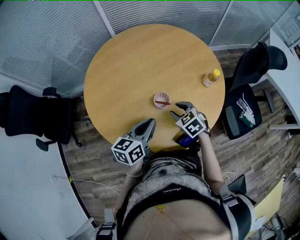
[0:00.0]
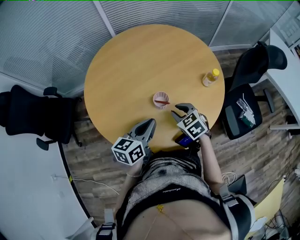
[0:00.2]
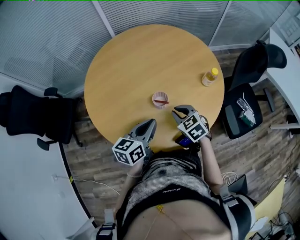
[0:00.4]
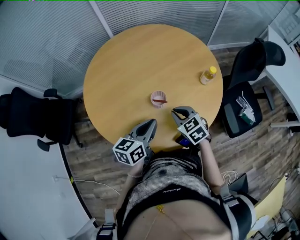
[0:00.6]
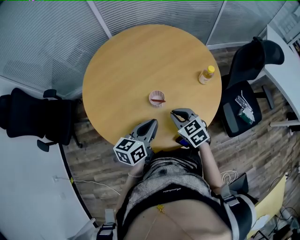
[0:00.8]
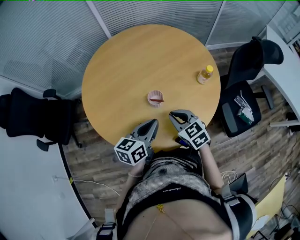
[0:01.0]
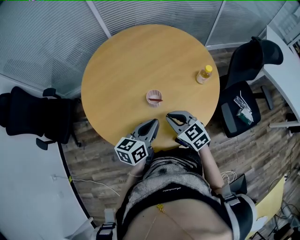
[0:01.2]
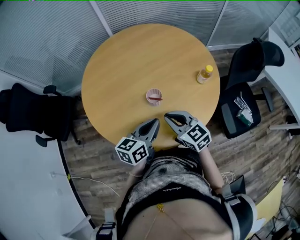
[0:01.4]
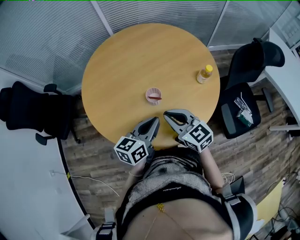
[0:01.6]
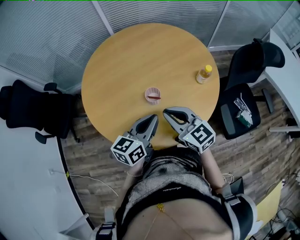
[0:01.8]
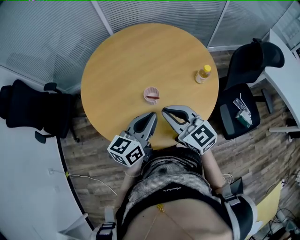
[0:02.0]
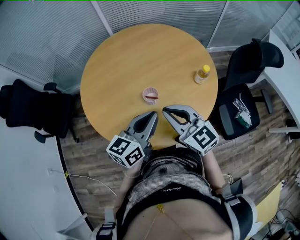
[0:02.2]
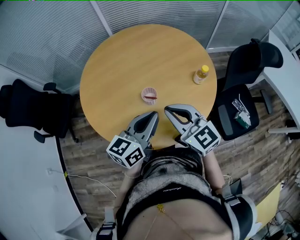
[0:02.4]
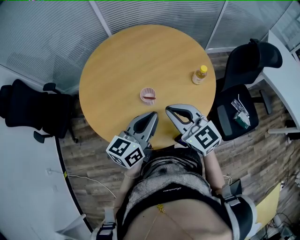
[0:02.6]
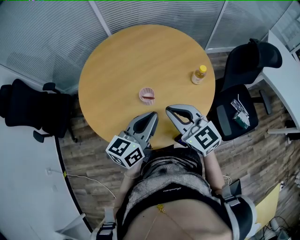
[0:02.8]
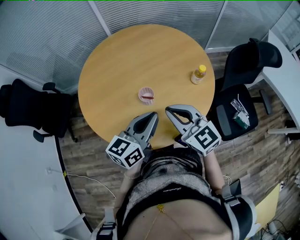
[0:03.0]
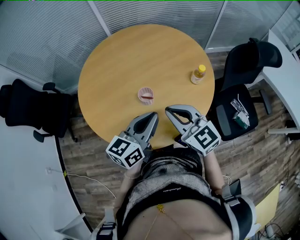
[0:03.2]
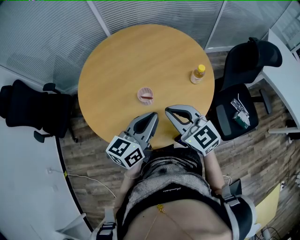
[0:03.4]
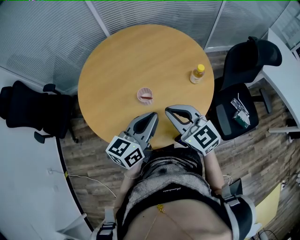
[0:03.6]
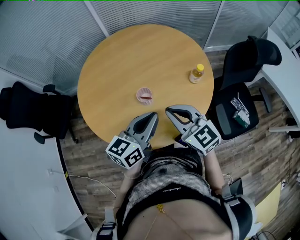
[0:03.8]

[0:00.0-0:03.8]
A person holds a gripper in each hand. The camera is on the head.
0.0 to 1.2 s: The left gripper heads to the right, covering roughly 5 cm. Meanwhile the right gripper travels upward and backward by approximately 10 cm, turns by roughly 20 degrees, and closes.
1.2 to 2.6 s: The grippers both shift upward by some 10 cm. The right gripper rotates some 20 degrees.
2.6 to 3.8 s: The grippers stay close to where they were, moving slightly.

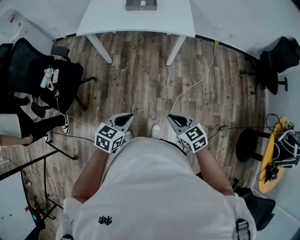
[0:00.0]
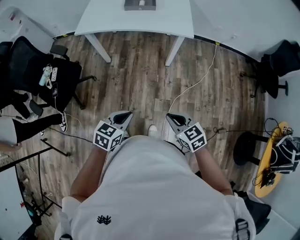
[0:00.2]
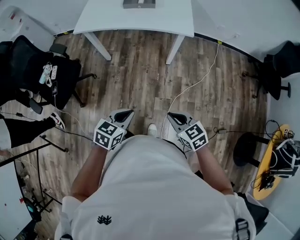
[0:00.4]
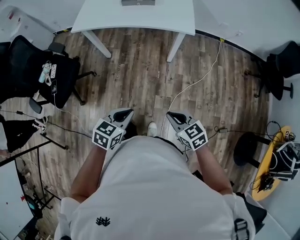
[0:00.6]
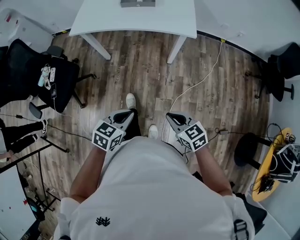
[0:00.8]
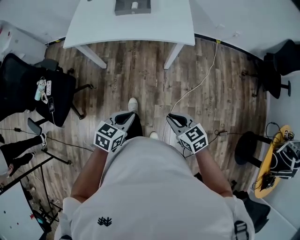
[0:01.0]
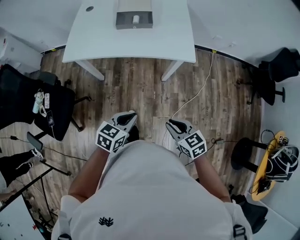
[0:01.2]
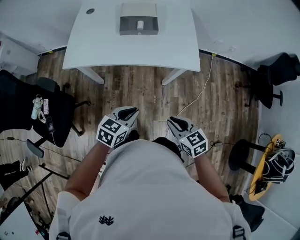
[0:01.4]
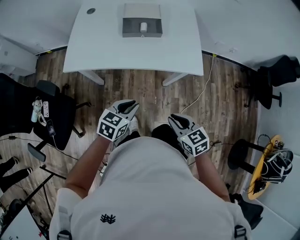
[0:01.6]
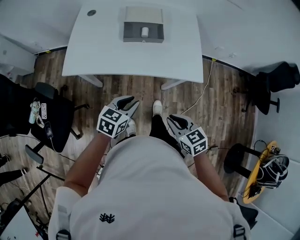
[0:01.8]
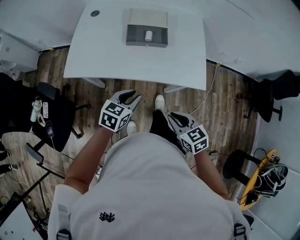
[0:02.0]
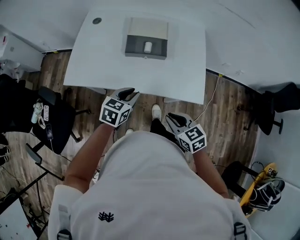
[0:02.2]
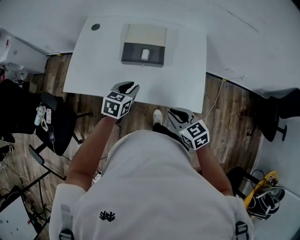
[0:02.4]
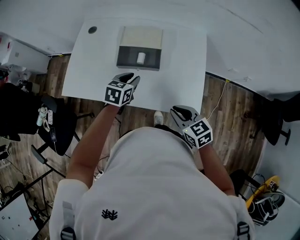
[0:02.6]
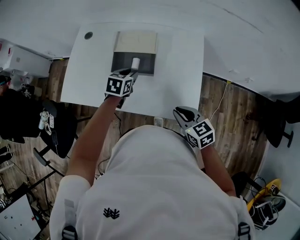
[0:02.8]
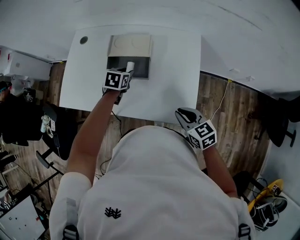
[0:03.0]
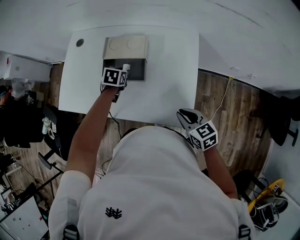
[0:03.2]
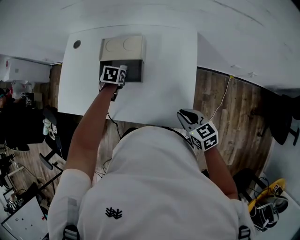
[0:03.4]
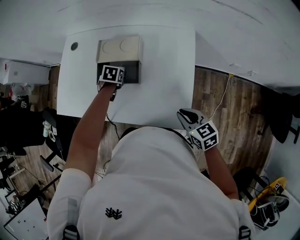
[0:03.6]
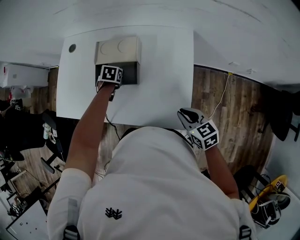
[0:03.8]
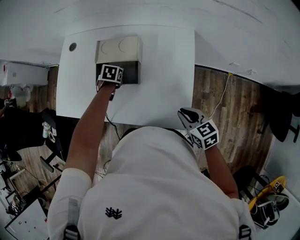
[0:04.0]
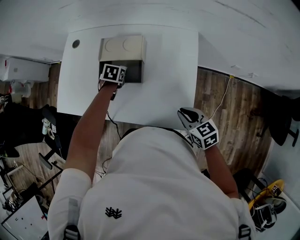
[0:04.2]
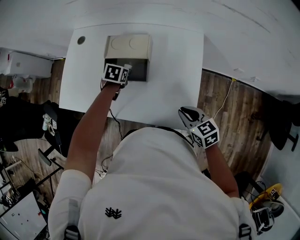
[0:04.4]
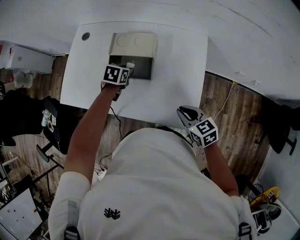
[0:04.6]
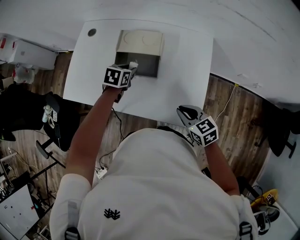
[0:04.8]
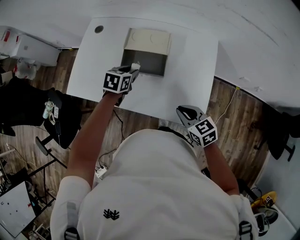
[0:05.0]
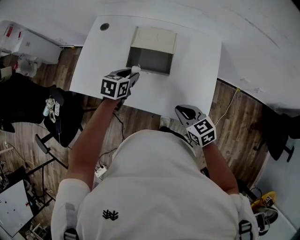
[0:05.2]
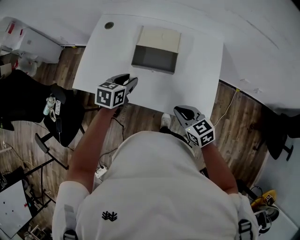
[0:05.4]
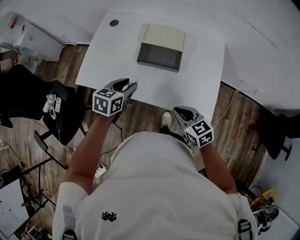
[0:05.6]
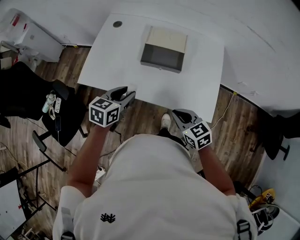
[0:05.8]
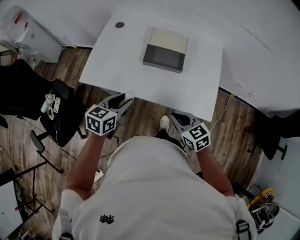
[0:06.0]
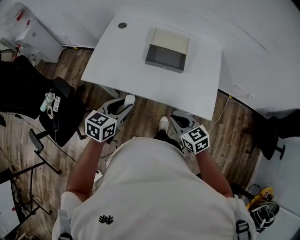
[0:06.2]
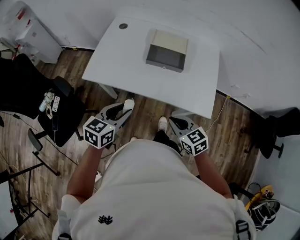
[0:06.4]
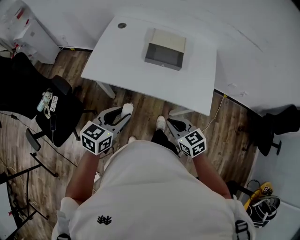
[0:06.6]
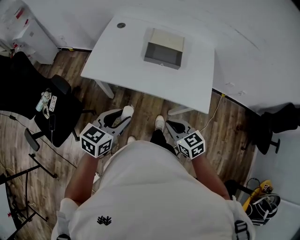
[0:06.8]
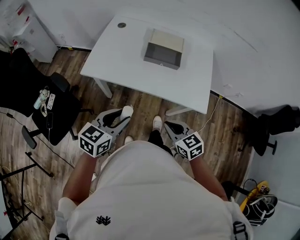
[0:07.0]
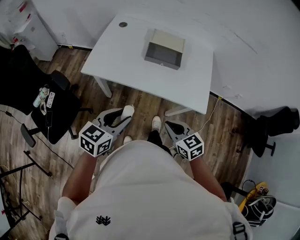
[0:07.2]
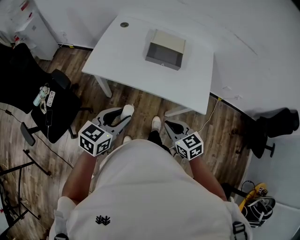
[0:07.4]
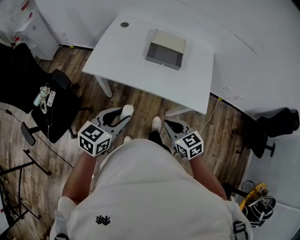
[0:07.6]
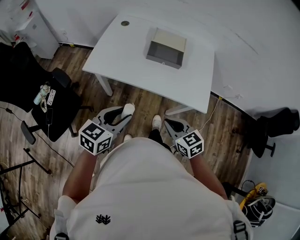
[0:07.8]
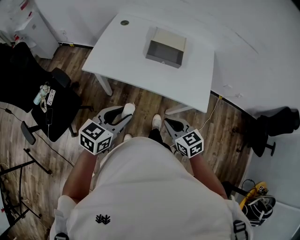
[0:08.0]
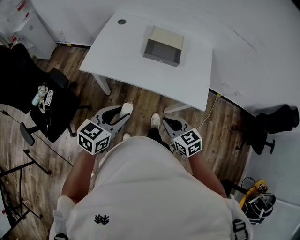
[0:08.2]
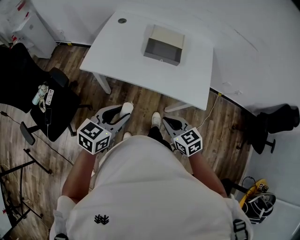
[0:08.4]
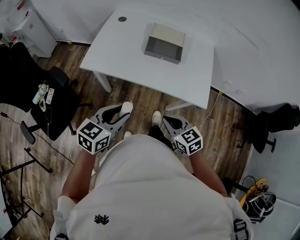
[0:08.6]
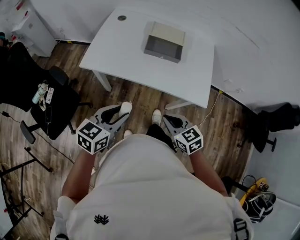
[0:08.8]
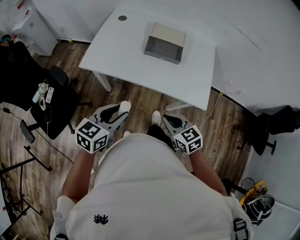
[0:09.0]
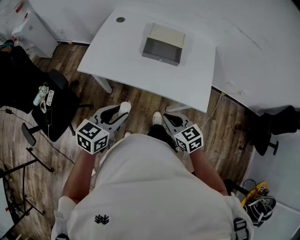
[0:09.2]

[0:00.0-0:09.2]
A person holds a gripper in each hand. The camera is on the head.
0.0 to 1.6 s: Both grippers move forward, about 30 cm.
1.6 to 3.0 s: The right gripper heads forward and to the right, covering roughly 30 cm, while the left gripper shifts about 40 cm forward, swivels roughly 30 degrees, and opens its fingers.
4.6 to 6.2 s: The right gripper shifts roughly 20 cm to the left and backward; the left gripper moves backward, to the left and upward, some 35 cm, and points its fingers roughly 30 degrees further upward.
6.2 to 7.6 s: The two grippers go some 10 cm backward.
7.6 to 9.2 s: The grippers make only small movements.

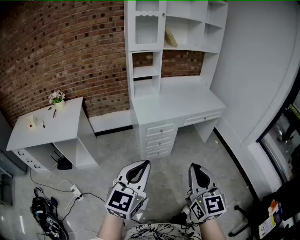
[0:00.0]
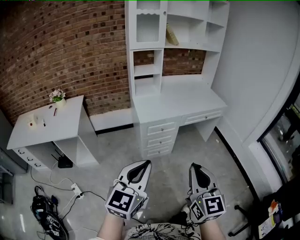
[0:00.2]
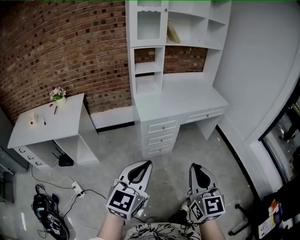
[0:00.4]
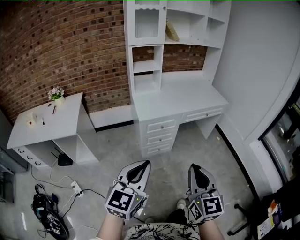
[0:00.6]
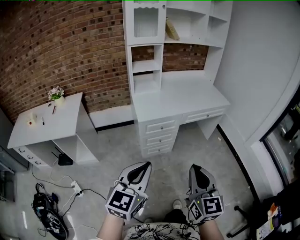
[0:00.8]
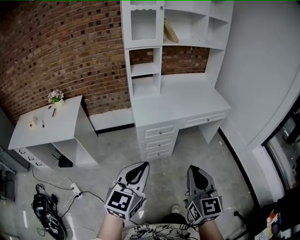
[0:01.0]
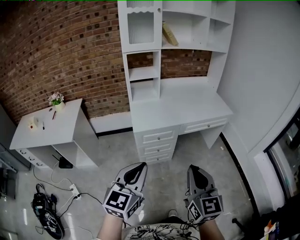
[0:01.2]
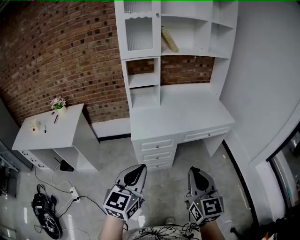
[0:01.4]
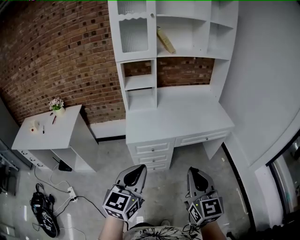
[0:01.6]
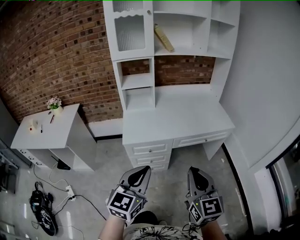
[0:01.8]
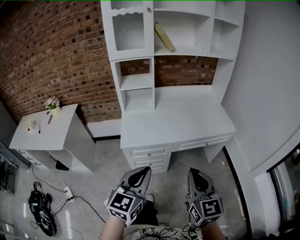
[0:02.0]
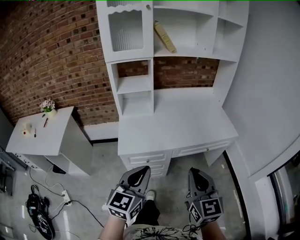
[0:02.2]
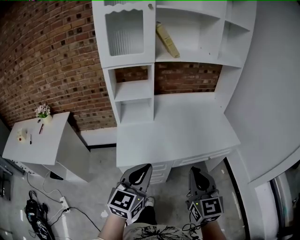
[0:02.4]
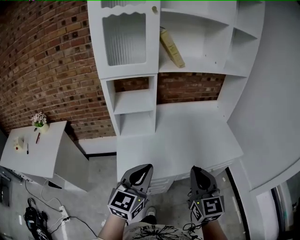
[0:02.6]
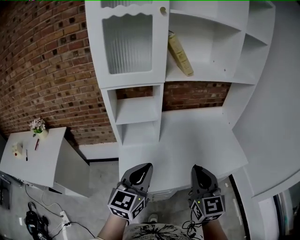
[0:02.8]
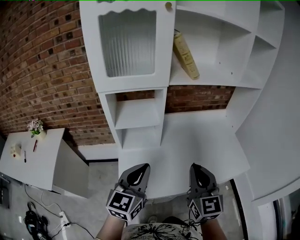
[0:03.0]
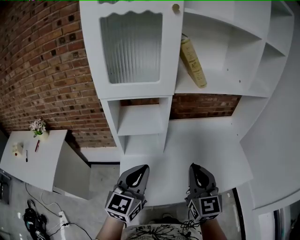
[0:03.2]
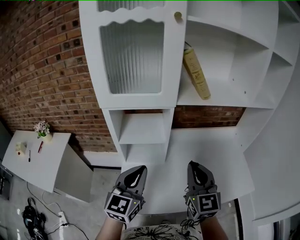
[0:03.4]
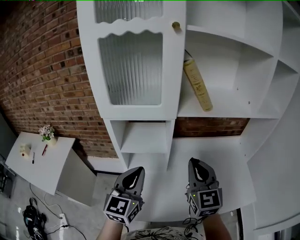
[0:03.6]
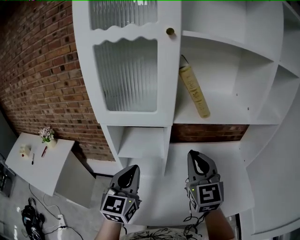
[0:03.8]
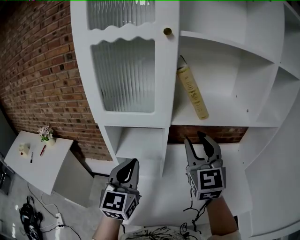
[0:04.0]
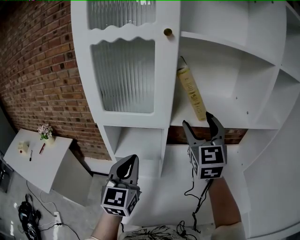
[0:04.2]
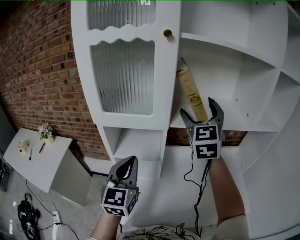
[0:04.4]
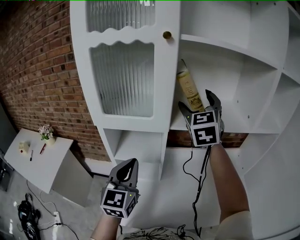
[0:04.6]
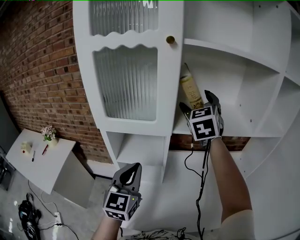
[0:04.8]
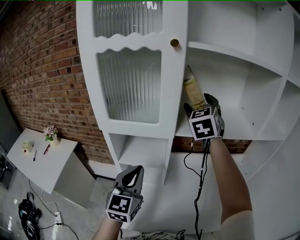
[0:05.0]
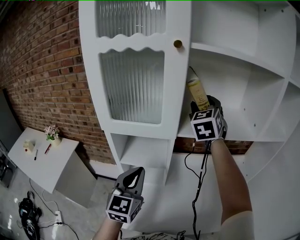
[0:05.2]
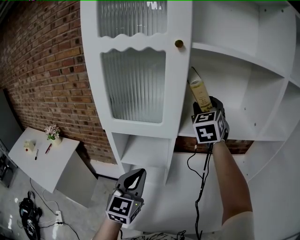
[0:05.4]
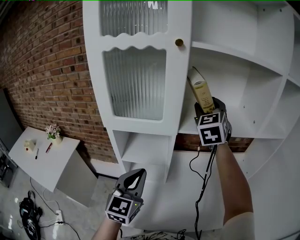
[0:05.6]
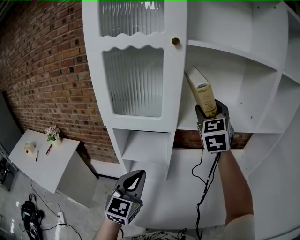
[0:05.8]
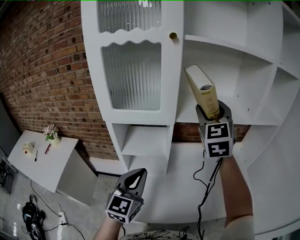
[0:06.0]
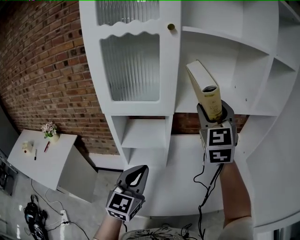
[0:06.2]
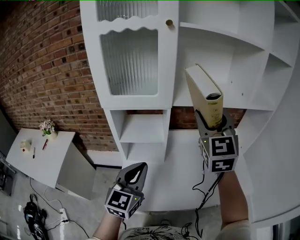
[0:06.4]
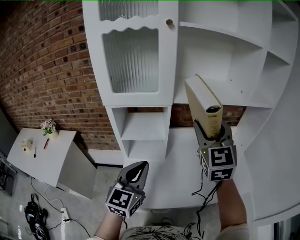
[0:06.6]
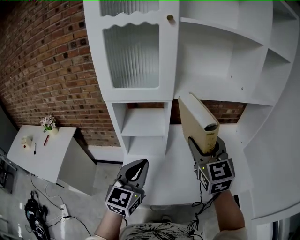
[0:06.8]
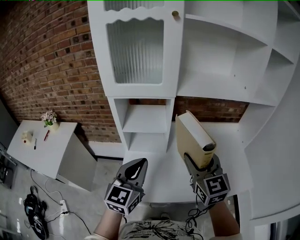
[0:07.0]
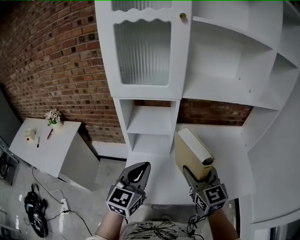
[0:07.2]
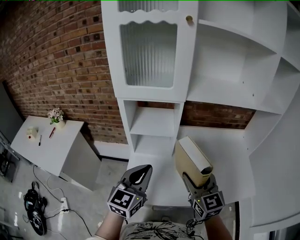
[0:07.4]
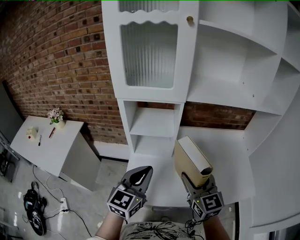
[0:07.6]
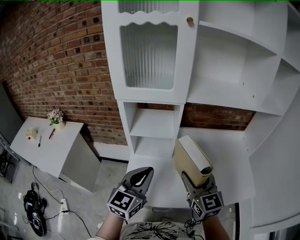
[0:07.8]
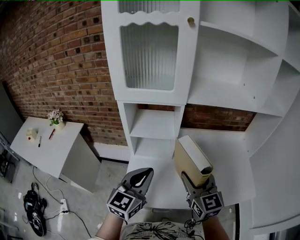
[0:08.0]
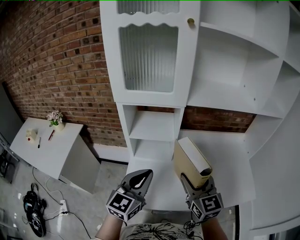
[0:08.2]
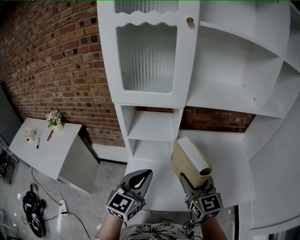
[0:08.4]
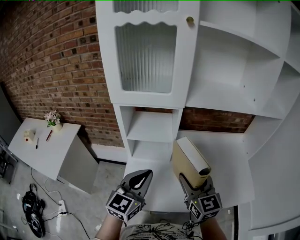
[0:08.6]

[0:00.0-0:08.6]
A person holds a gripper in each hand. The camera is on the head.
0.0 to 1.4 s: Both grippers move forward and to the right, about 20 cm.
1.4 to 2.8 s: Both grippers are carried forward, some 40 cm.
2.8 to 4.4 s: The left gripper shifts some 20 cm forward, and rotates about 30 degrees; the right gripper goes some 50 cm forward and upward, rotates roughly 20 degrees, and opens its fingers.
4.4 to 5.8 s: The right gripper reaches some 10 cm forward, then returns, and closes its fingers.
5.8 to 7.2 s: The right gripper is displaced backward and downward by roughly 35 cm, and turns by about 30 degrees. Meanwhile the left gripper travels backward by some 10 cm.
7.2 to 8.6 s: The grippers make only small movements.

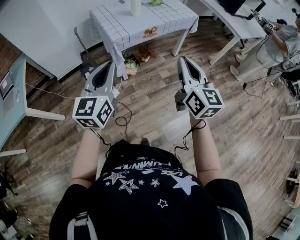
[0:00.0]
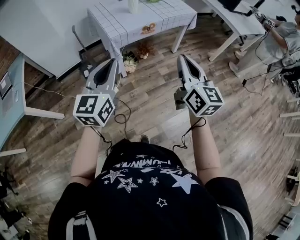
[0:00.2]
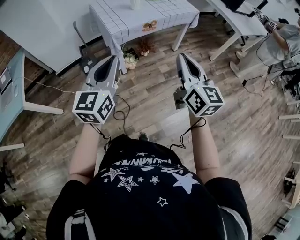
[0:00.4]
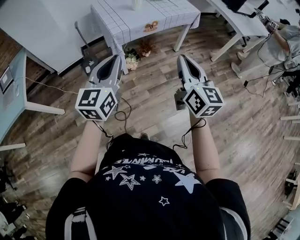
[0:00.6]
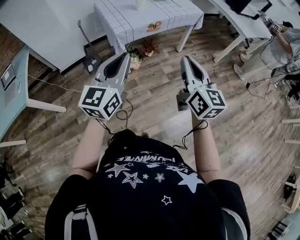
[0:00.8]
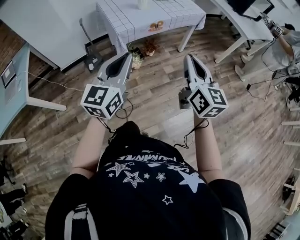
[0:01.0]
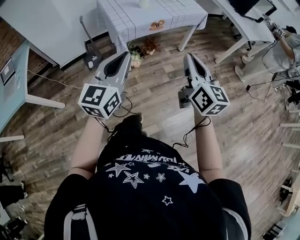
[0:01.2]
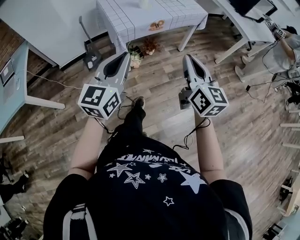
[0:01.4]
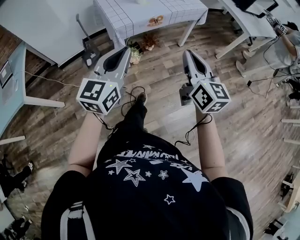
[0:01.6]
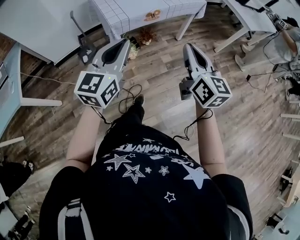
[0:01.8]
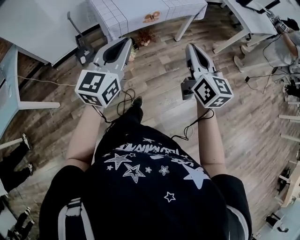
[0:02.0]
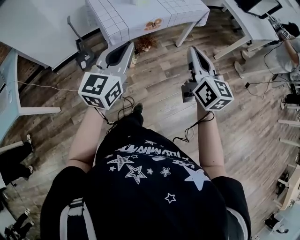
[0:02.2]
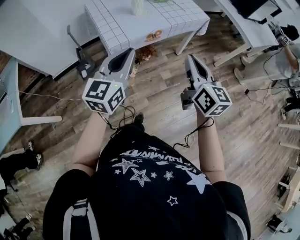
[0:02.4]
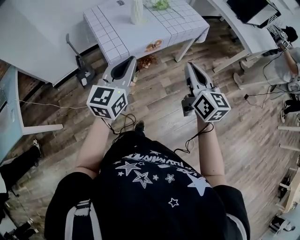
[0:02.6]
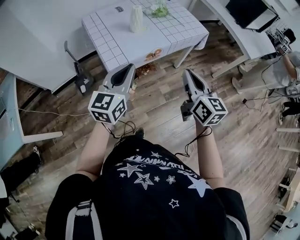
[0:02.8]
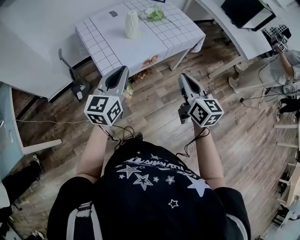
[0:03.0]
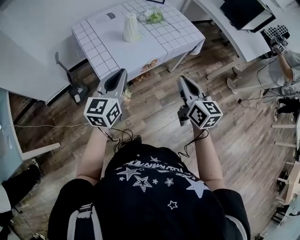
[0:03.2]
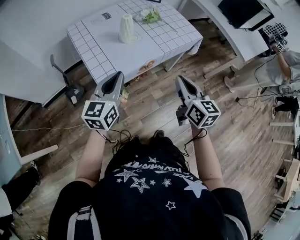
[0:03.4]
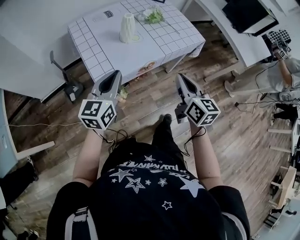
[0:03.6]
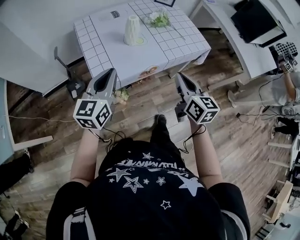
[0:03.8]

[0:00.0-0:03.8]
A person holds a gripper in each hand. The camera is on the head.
0.0 to 1.2 s: The grippers make only small movements.
1.2 to 2.6 s: The two grippers go some 20 cm forward.
2.6 to 3.8 s: The left gripper shifts approximately 15 cm forward and to the left; the right gripper goes about 15 cm forward.
